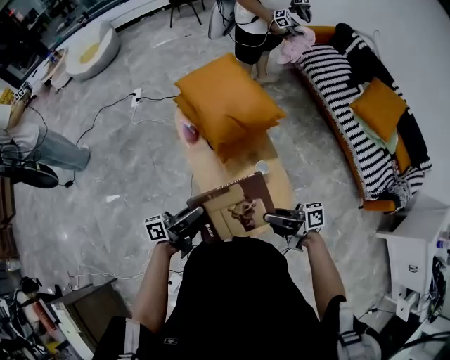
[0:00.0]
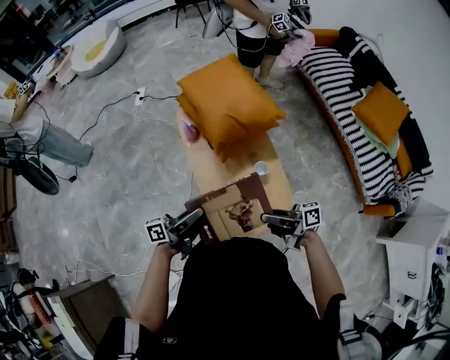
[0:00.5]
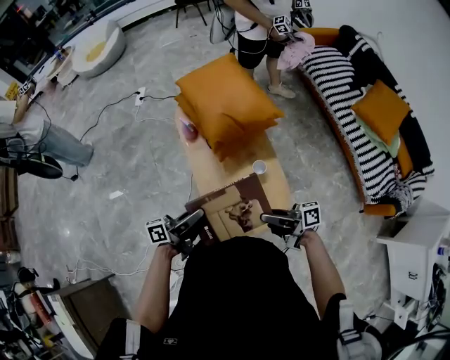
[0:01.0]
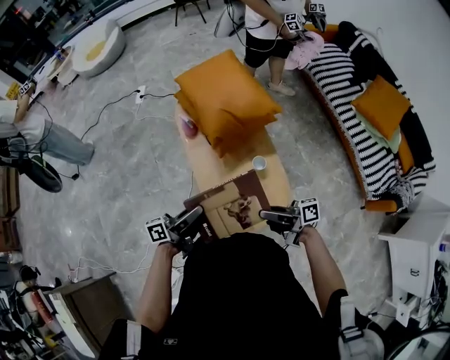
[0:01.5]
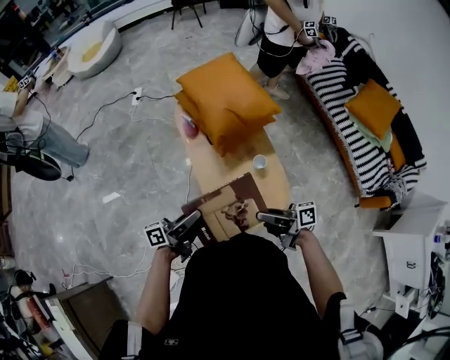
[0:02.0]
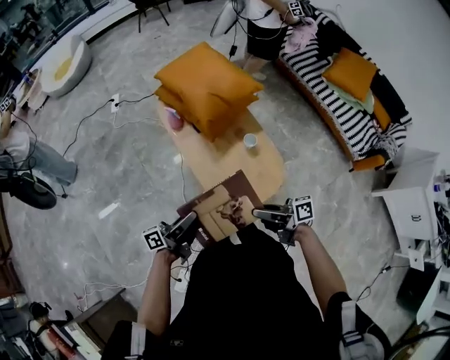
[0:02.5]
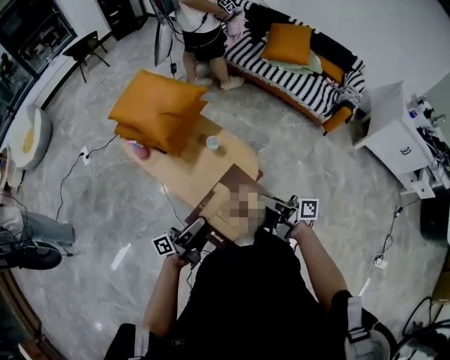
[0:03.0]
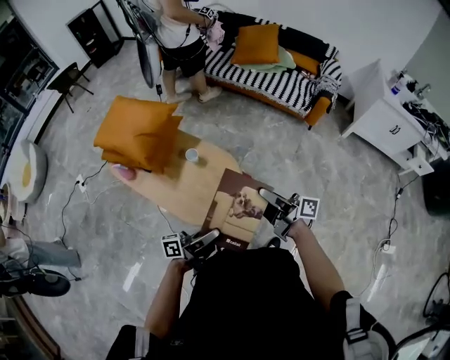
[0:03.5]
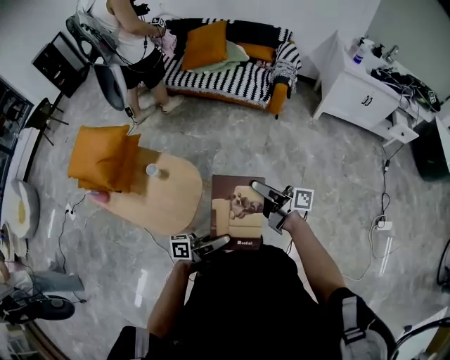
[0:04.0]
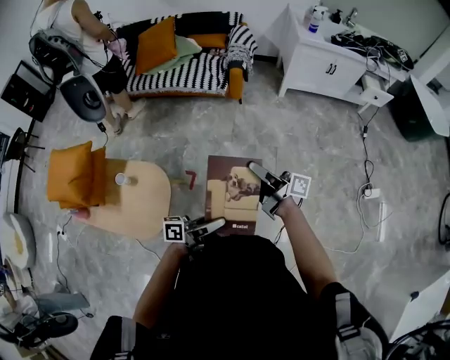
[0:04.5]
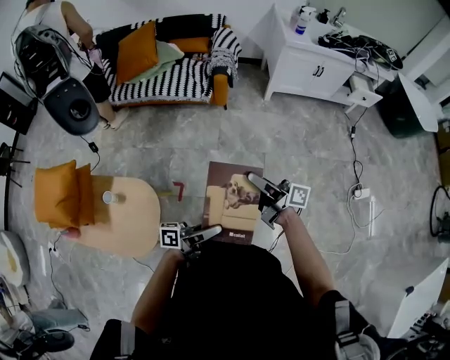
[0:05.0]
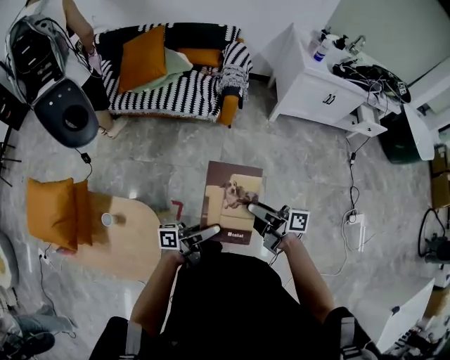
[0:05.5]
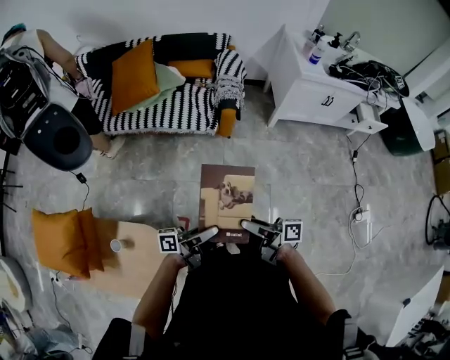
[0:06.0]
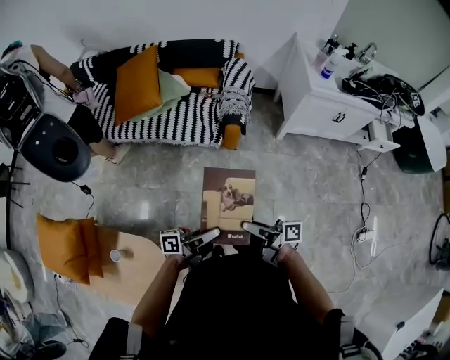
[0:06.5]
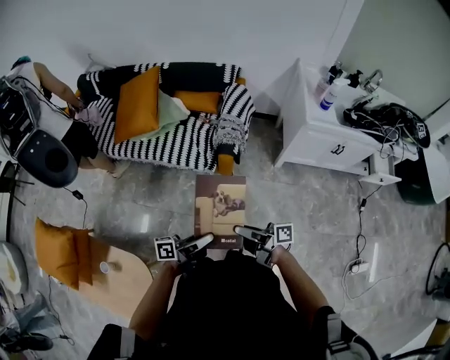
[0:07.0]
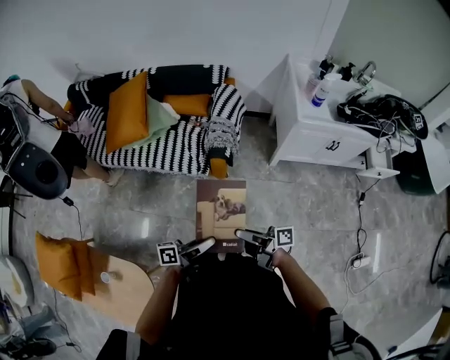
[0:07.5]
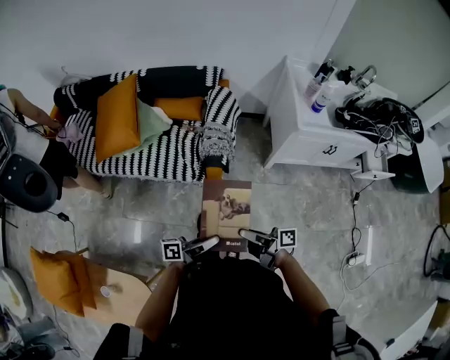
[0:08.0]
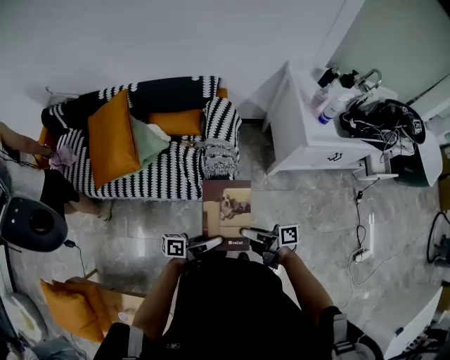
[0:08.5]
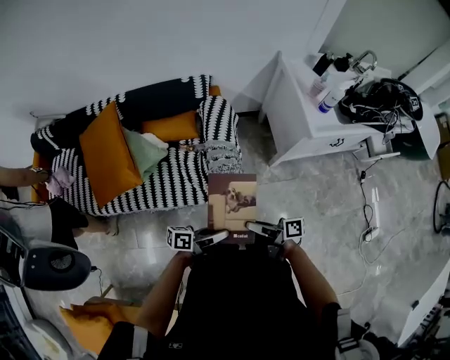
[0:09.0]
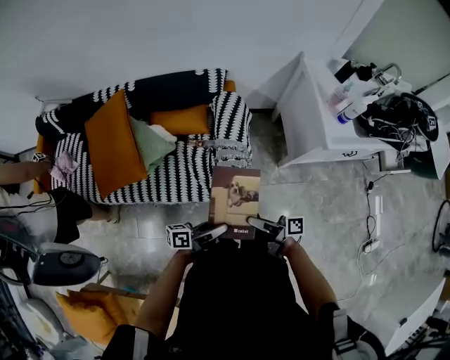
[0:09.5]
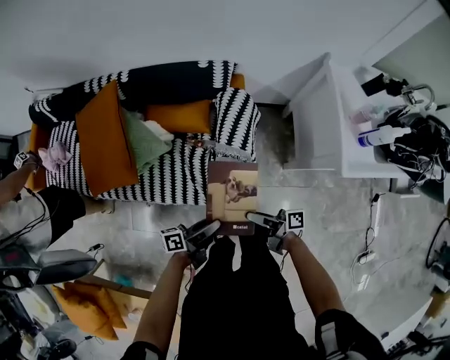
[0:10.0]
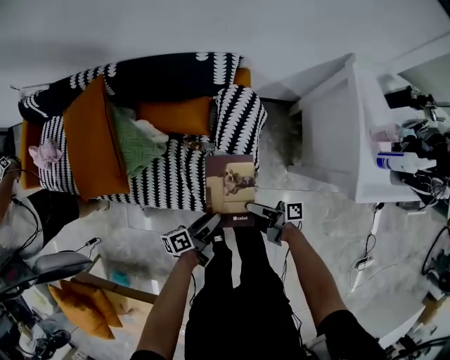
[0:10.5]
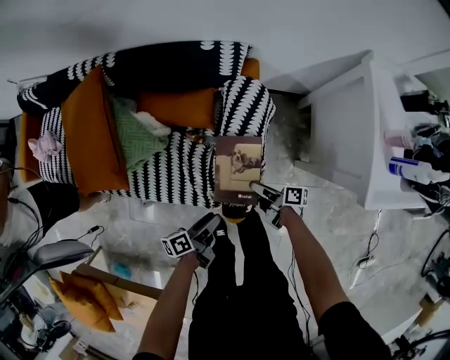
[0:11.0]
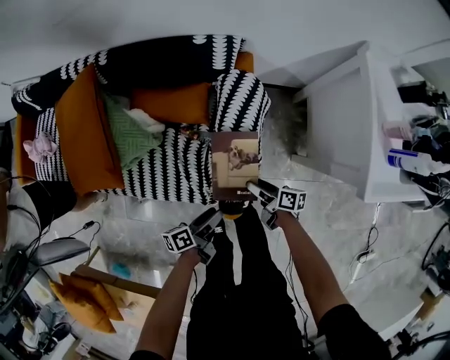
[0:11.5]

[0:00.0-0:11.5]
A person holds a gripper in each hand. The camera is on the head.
0:00.0 to 0:02.0: The right gripper changes place by some 5 cm. Meanwhile the left gripper shifts about 5 cm backward.
0:02.0 to 0:04.0: Both grippers are carried some 40 cm. The right gripper rotates approximately 70 degrees, while the left gripper rotates about 70 degrees.
0:04.0 to 0:06.0: The left gripper moves forward, approximately 35 cm. Meanwhile the right gripper is displaced forward by roughly 20 cm.
0:06.0 to 0:07.5: The two grippers go approximately 25 cm forward and to the right.
0:07.5 to 0:09.5: The right gripper ends up about 30 cm from where it was. The left gripper shifts by approximately 30 cm.
0:09.5 to 0:11.5: Both grippers travel together downward and forward, roughly 30 cm. The left gripper rotates some 30 degrees; the right gripper changes its angle by approximately 20 degrees, and opens its fingers.

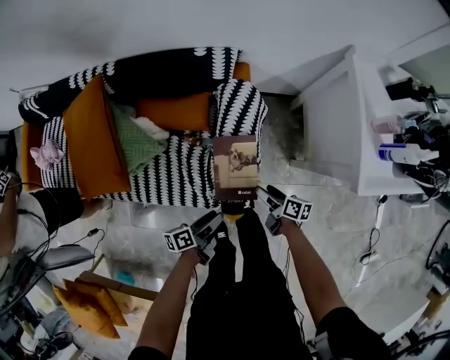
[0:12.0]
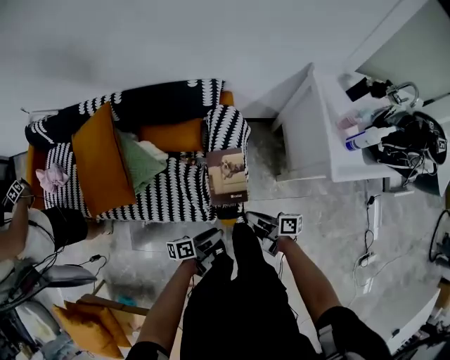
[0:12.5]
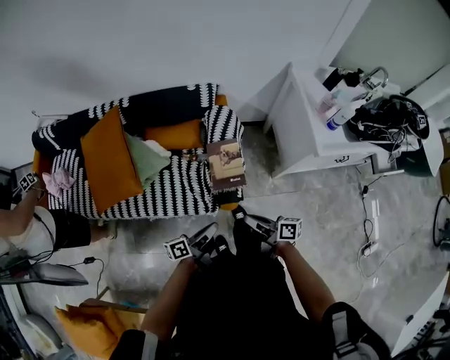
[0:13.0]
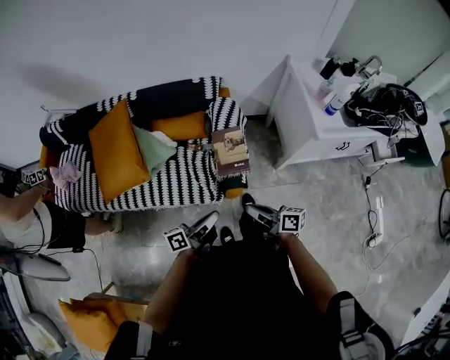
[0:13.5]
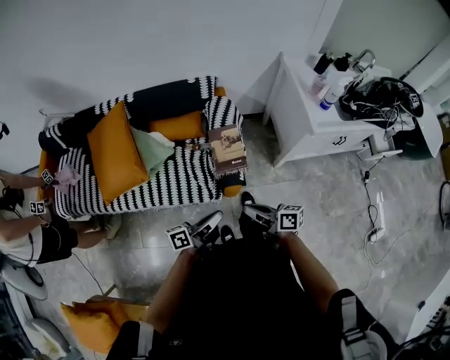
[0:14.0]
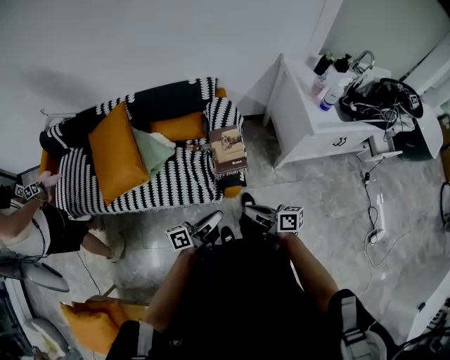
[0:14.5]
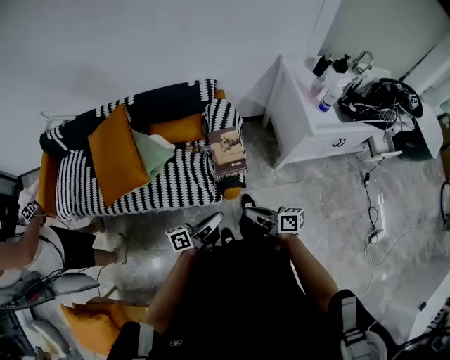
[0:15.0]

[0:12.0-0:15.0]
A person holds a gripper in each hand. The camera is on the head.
0:12.0 to 0:13.5: Both grippers travel together upward and backward, some 30 cm. The left gripper turns by roughly 30 degrees, and closes its fingers. The right gripper rotates some 30 degrees, and closes.
0:13.5 to 0:15.0: The grippers move only a little.

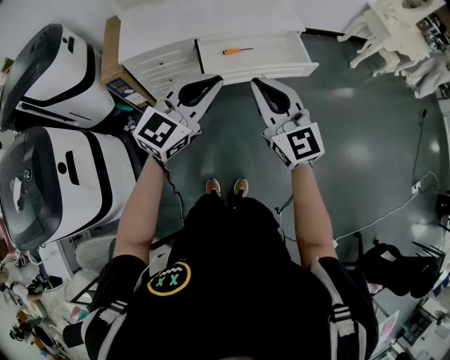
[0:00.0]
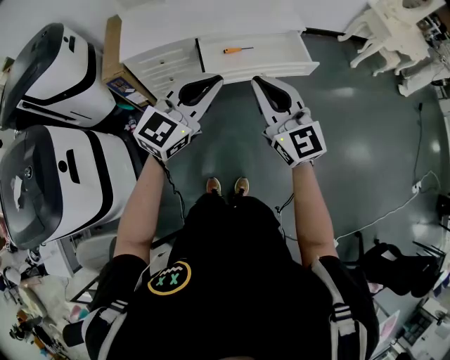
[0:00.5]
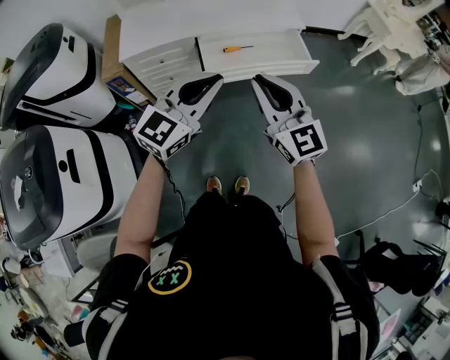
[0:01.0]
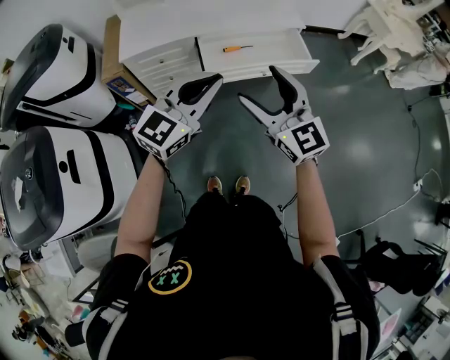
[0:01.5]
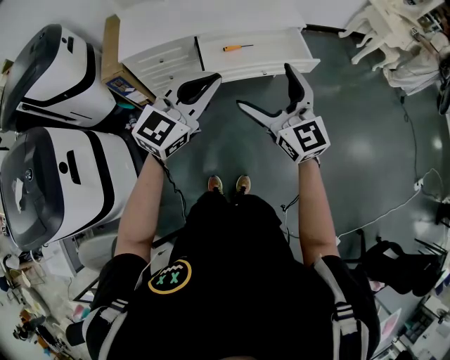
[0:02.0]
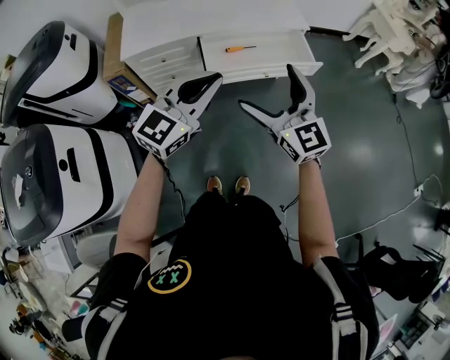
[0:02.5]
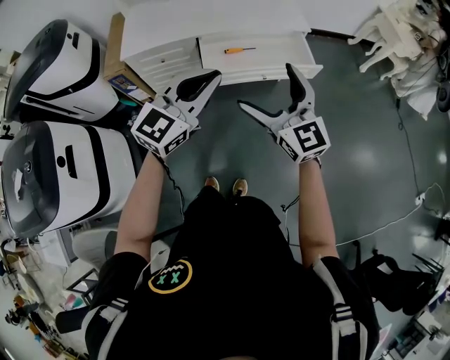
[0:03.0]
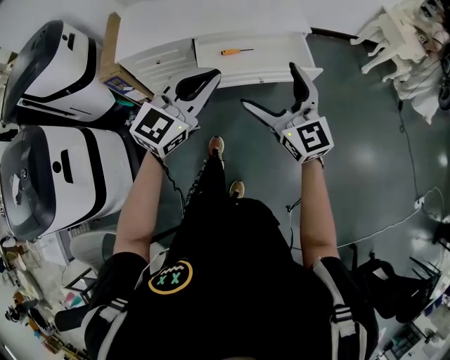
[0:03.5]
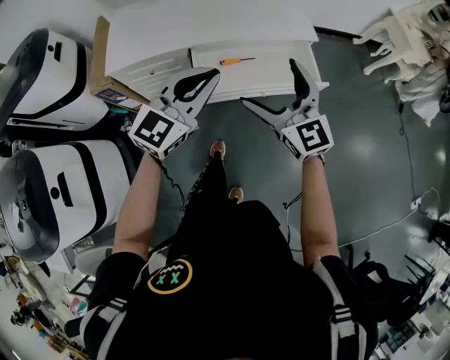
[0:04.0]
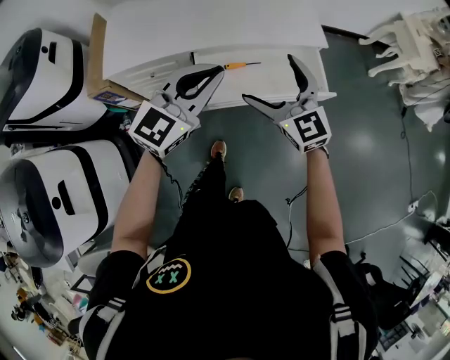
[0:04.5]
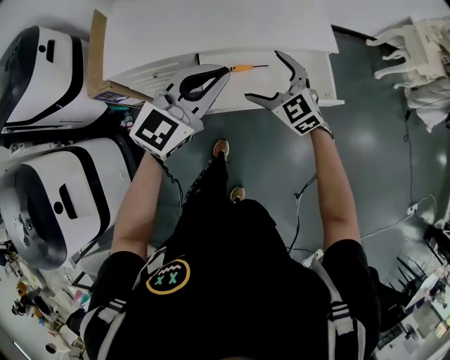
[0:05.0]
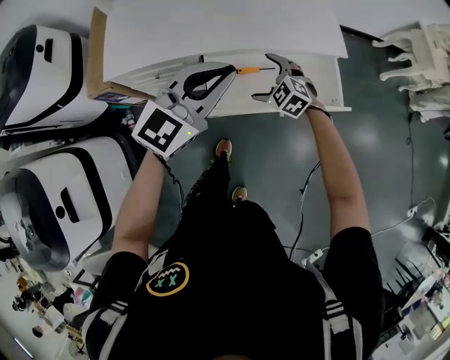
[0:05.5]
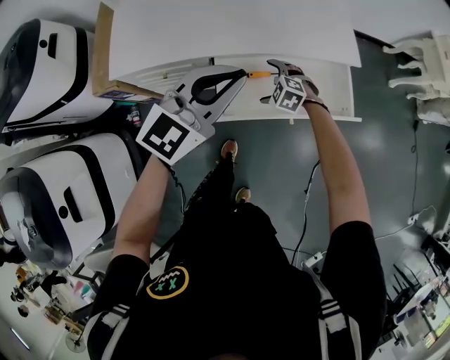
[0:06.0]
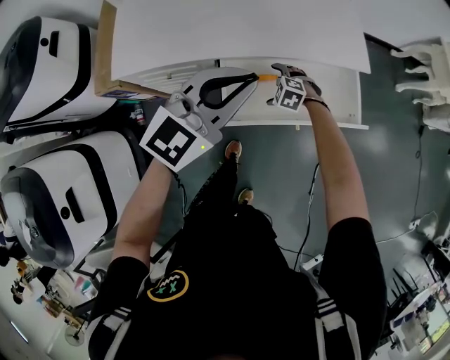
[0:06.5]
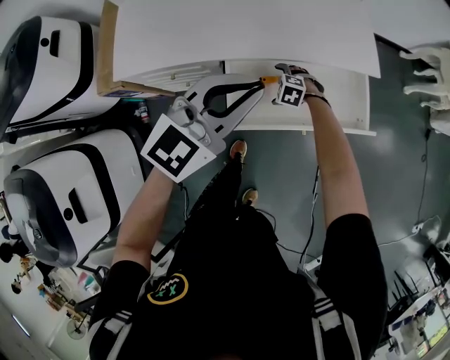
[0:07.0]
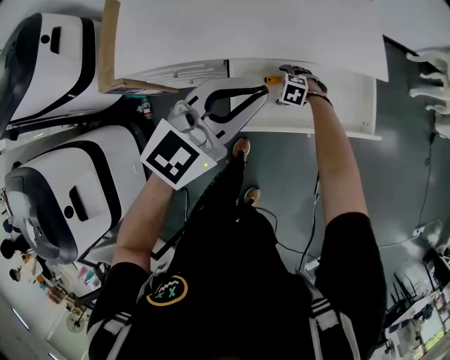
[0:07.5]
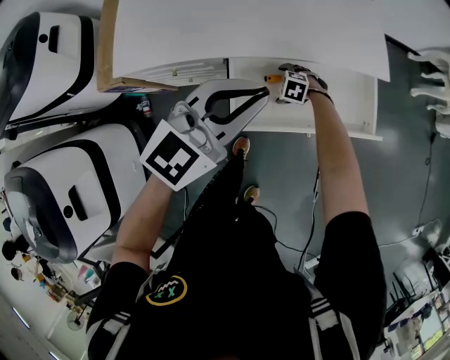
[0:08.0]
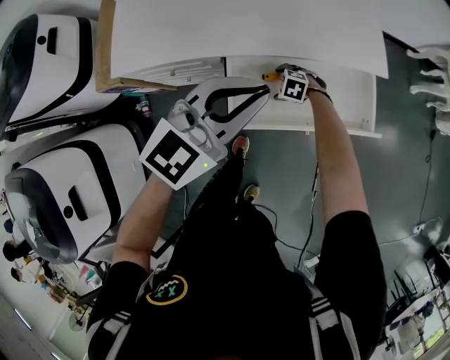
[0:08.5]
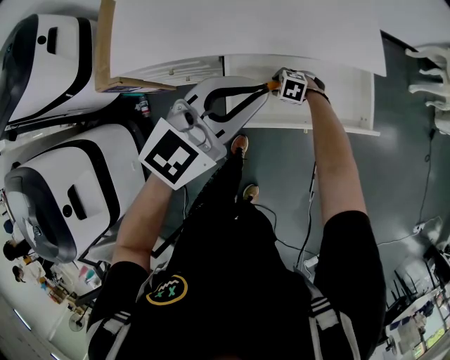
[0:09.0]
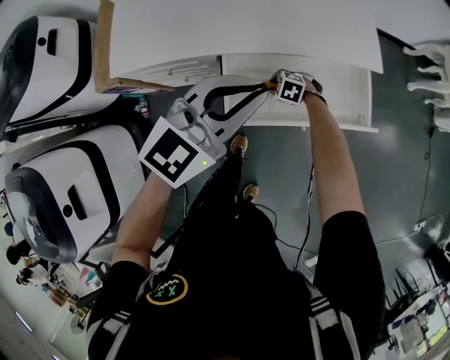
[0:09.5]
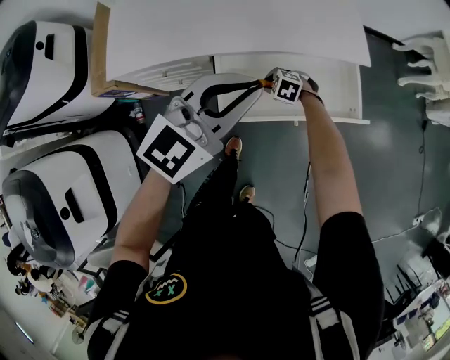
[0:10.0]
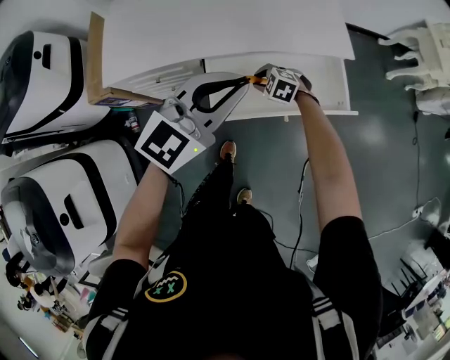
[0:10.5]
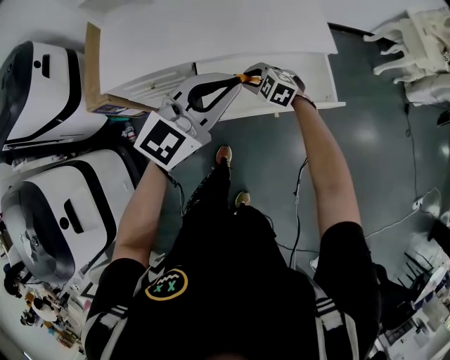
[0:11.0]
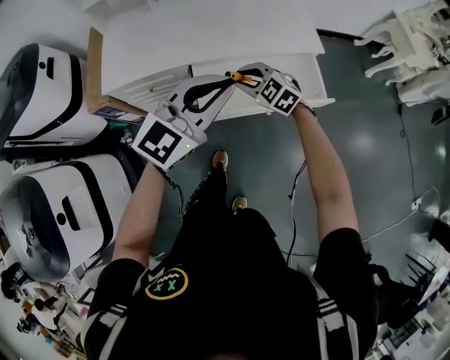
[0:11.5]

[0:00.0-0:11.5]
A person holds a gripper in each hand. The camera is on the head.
0:00.0 to 0:02.0: The right gripper opens up.
0:02.0 to 0:04.0: Both grippers move forward, roughly 20 cm.
0:04.0 to 0:06.0: The left gripper is displaced forward by roughly 15 cm, while the right gripper moves downward and forward, about 40 cm, and points its fingers about 60 degrees further downward.
0:06.0 to 0:07.5: The right gripper shifts some 15 cm downward.
0:07.5 to 0:09.5: The right gripper closes its fingers.
0:09.5 to 0:11.5: The right gripper heads upward, covering approximately 30 cm, and swivels about 40 degrees, while the left gripper moves some 15 cm.

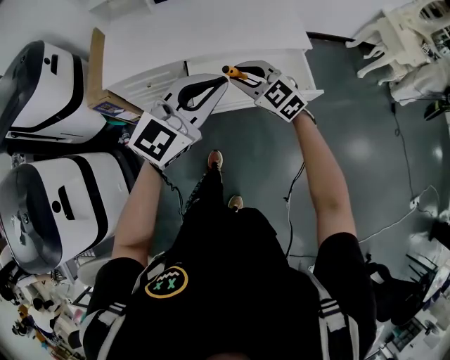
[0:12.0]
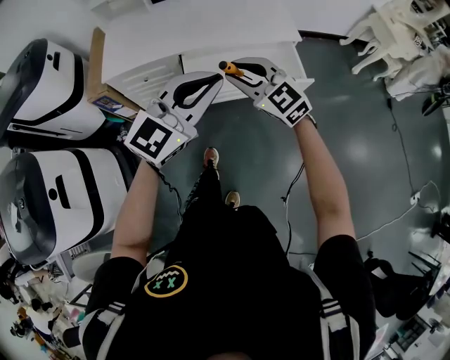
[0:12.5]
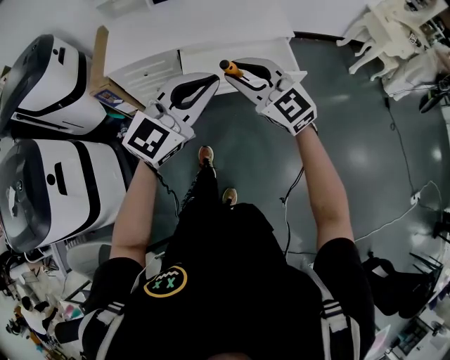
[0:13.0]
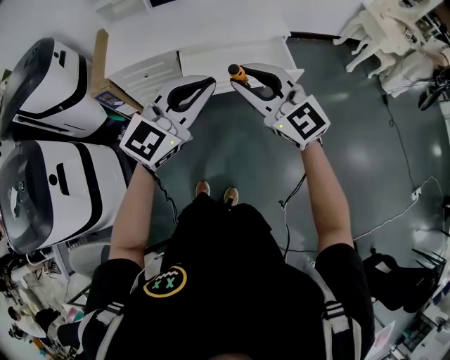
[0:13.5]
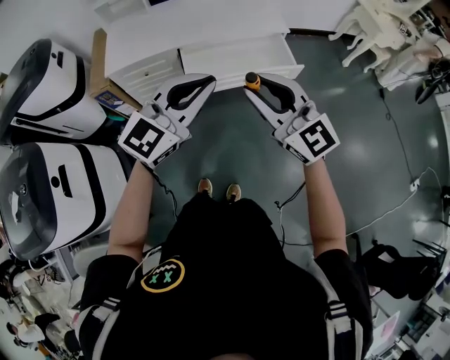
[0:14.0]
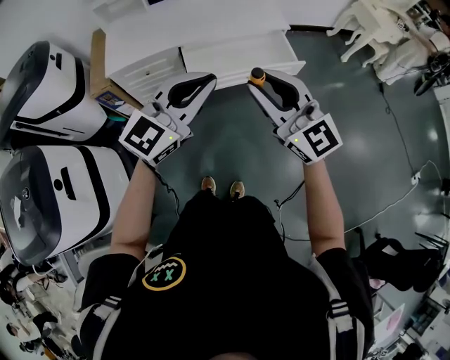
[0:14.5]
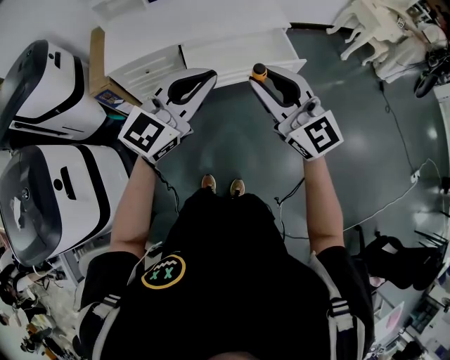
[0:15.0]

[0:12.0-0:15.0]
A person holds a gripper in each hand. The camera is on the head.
0:12.0 to 0:13.5: The left gripper travels backward by some 15 cm; the right gripper goes about 30 cm backward and upward, and rotates some 30 degrees.
0:13.5 to 0:15.0: The left gripper shifts about 5 cm to the left.
